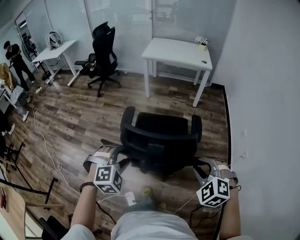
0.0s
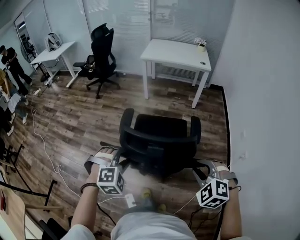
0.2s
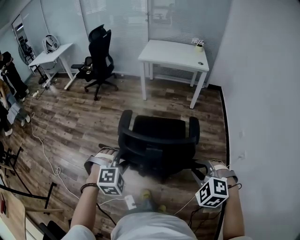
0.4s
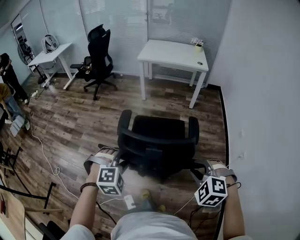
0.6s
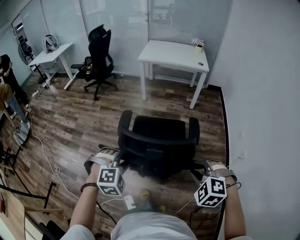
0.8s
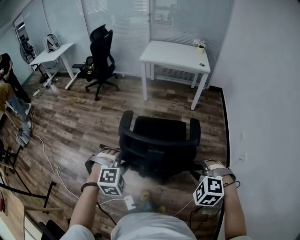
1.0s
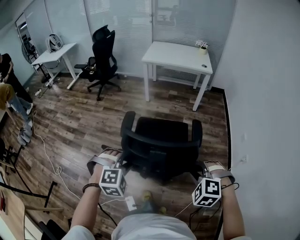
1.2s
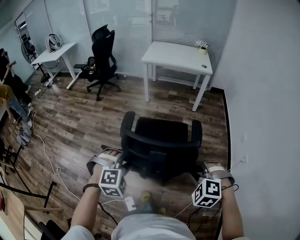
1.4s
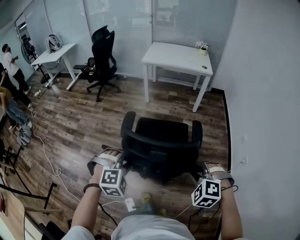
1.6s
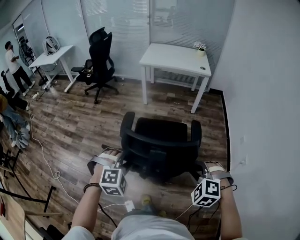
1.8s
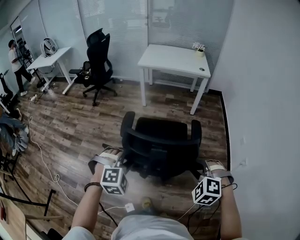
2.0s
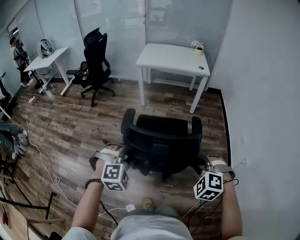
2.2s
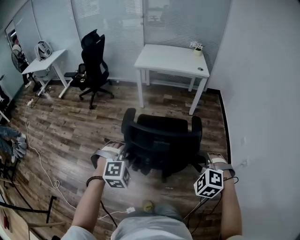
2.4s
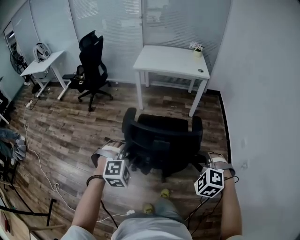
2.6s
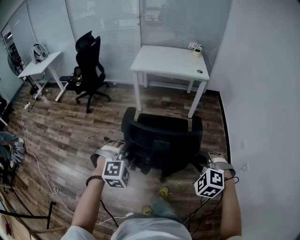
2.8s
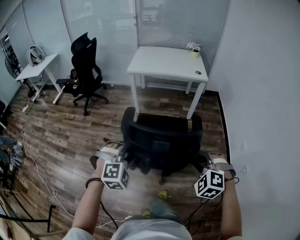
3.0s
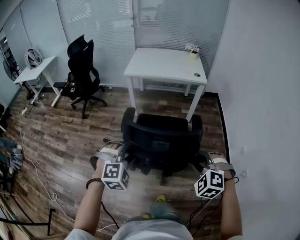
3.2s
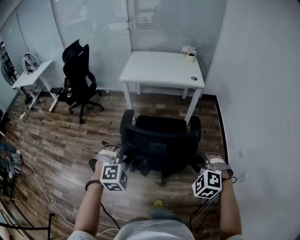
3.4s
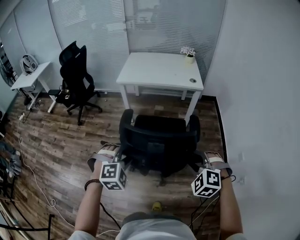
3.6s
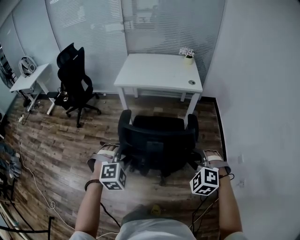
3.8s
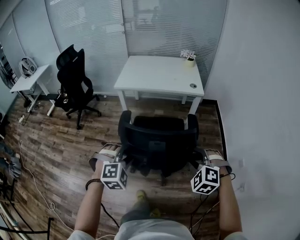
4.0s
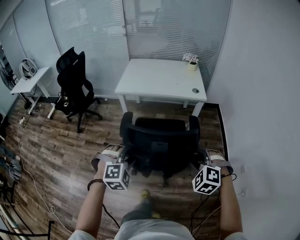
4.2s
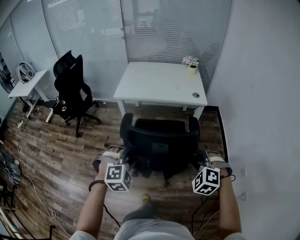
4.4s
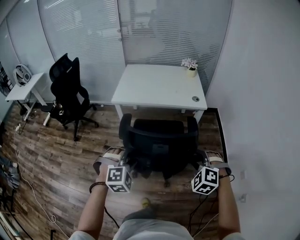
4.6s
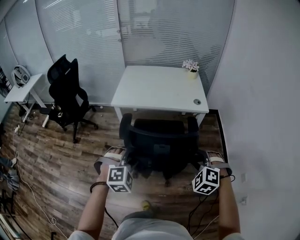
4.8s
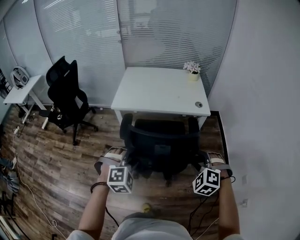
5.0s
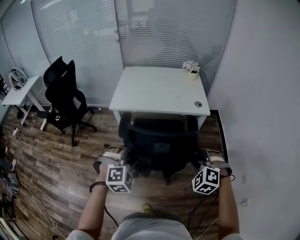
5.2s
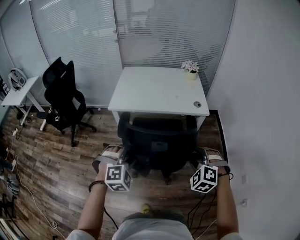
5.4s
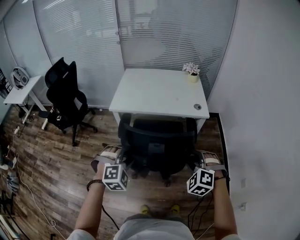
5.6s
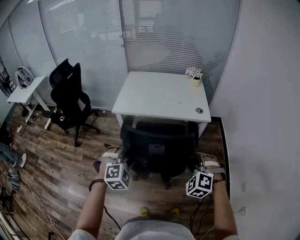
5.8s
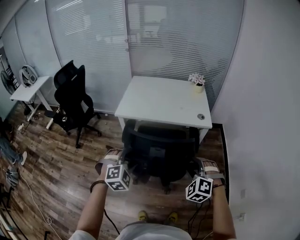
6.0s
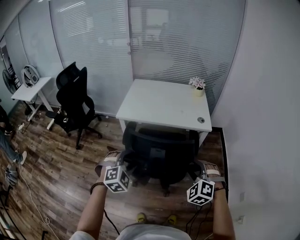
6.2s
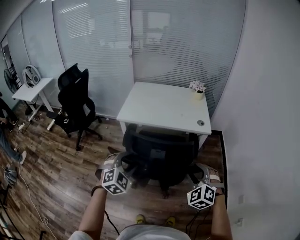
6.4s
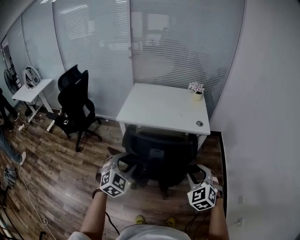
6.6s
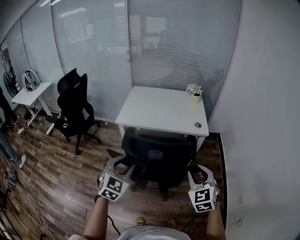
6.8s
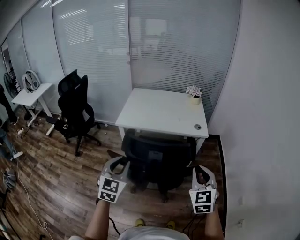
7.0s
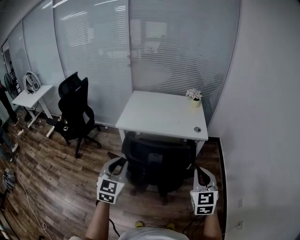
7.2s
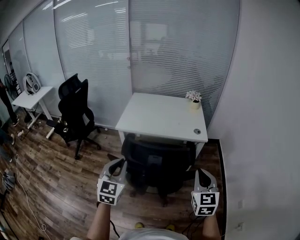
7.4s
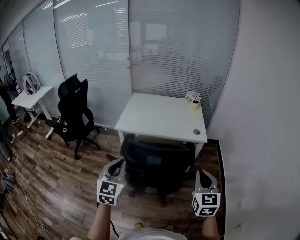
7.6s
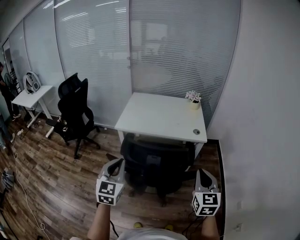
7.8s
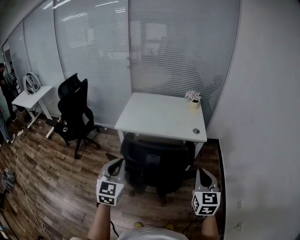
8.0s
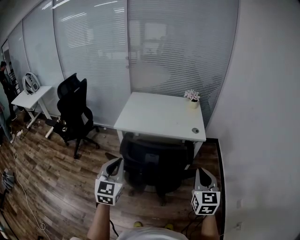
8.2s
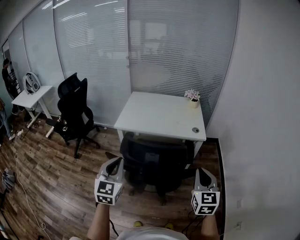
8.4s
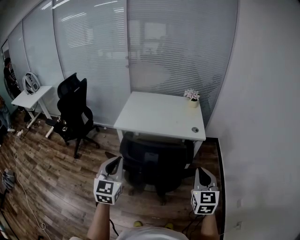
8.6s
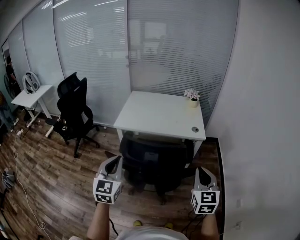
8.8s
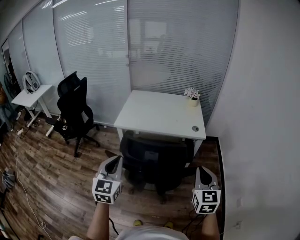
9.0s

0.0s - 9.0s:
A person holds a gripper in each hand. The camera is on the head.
0.0s - 1.6s: The right gripper changes place by about 5 cm.
1.6s - 3.0s: Both grippers move forward, about 30 cm.
3.0s - 4.4s: The grippers both shift forward by about 35 cm.
4.4s - 6.0s: The two grippers go roughly 15 cm forward.
6.0s - 7.6s: The right gripper shifts roughly 15 cm upward and to the right, twists roughly 60 degrees clockwise, seen from behind, and closes its fingers; the left gripper travels upward by some 10 cm, tips its fingers upward by about 30 degrees, and closes its fingers.
7.6s - 9.0s: There are only small adjustments of the grippers.

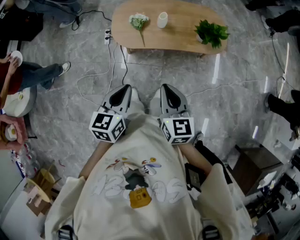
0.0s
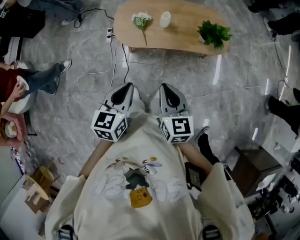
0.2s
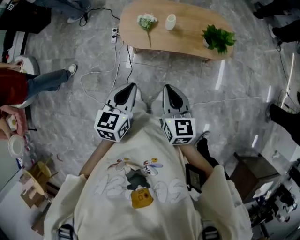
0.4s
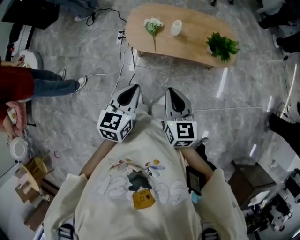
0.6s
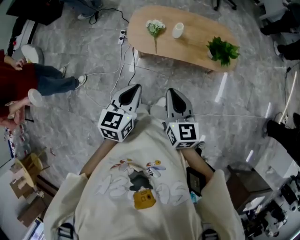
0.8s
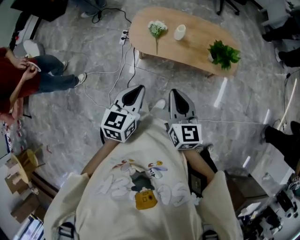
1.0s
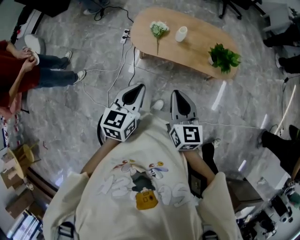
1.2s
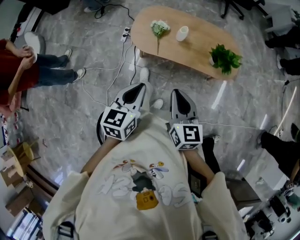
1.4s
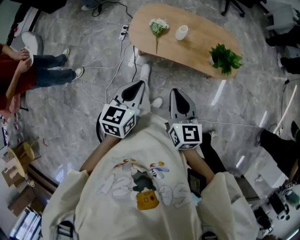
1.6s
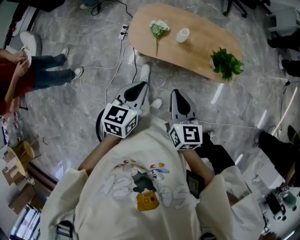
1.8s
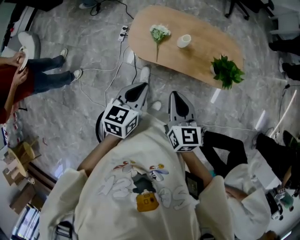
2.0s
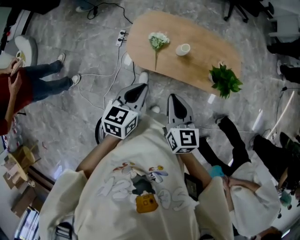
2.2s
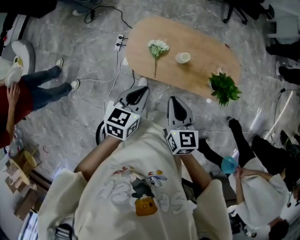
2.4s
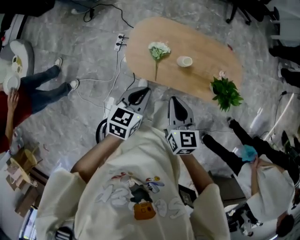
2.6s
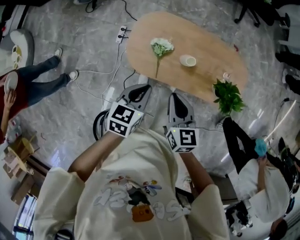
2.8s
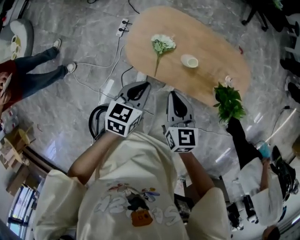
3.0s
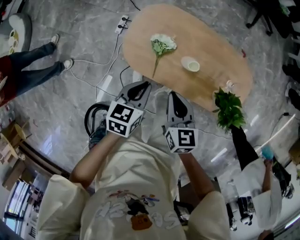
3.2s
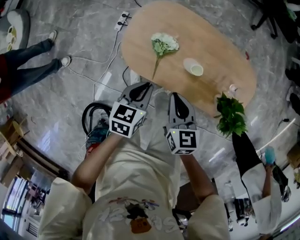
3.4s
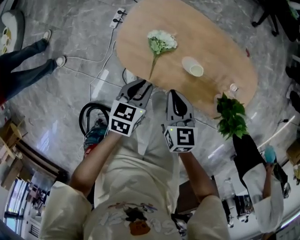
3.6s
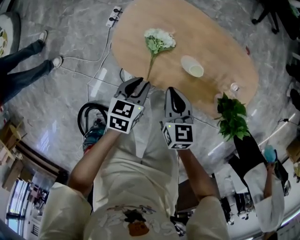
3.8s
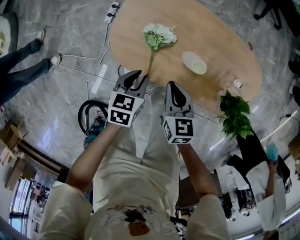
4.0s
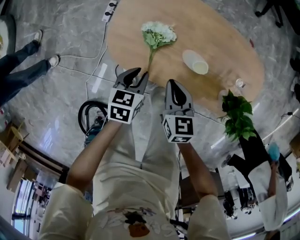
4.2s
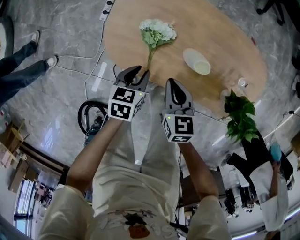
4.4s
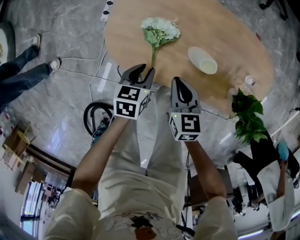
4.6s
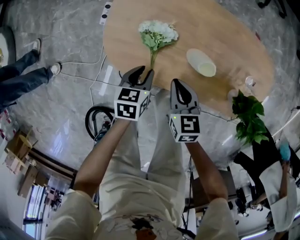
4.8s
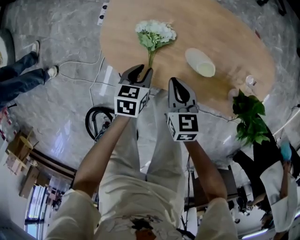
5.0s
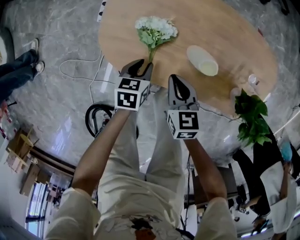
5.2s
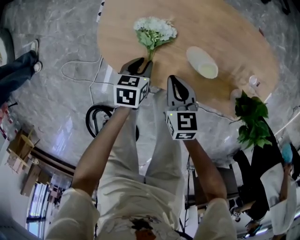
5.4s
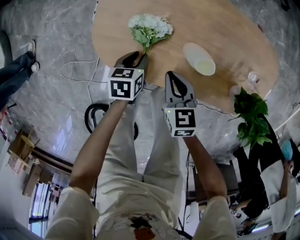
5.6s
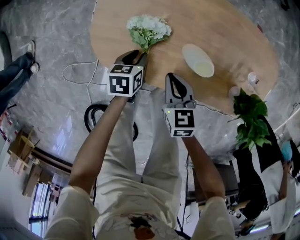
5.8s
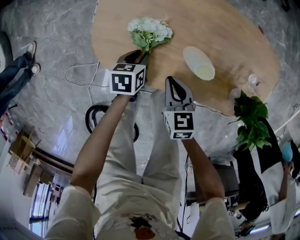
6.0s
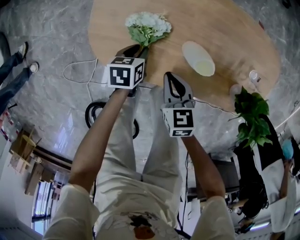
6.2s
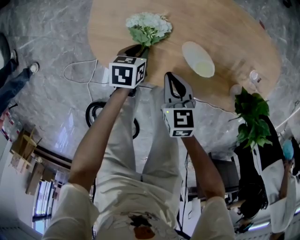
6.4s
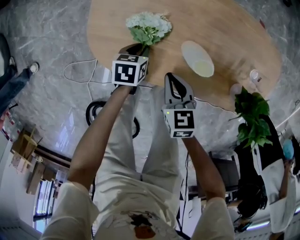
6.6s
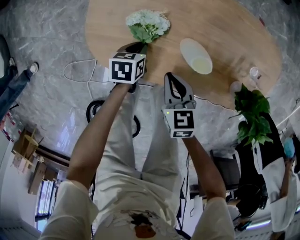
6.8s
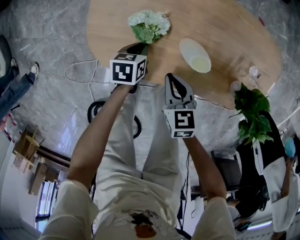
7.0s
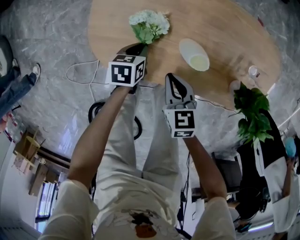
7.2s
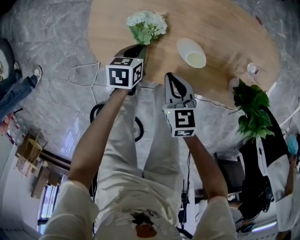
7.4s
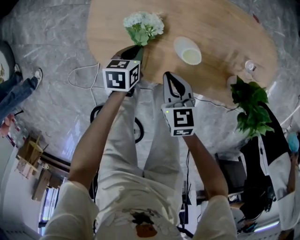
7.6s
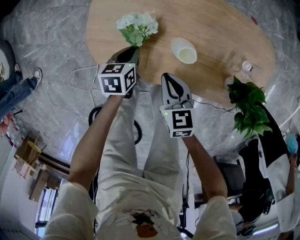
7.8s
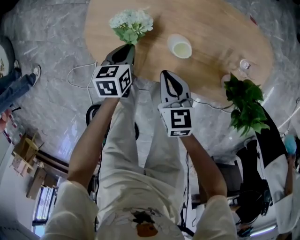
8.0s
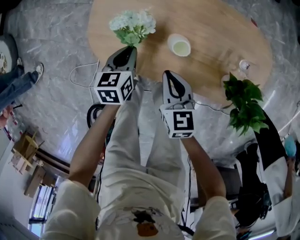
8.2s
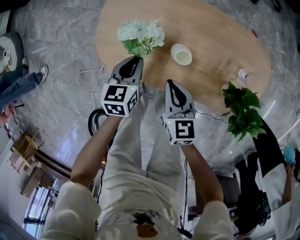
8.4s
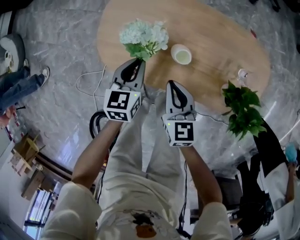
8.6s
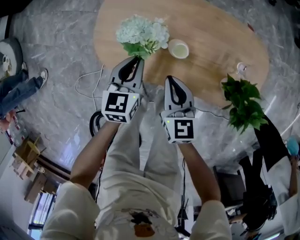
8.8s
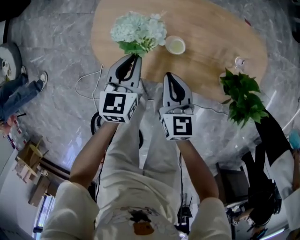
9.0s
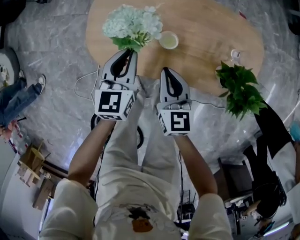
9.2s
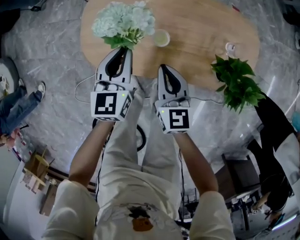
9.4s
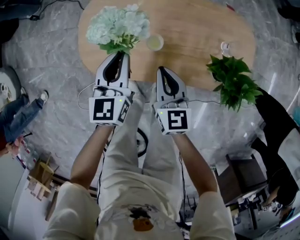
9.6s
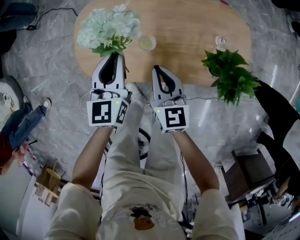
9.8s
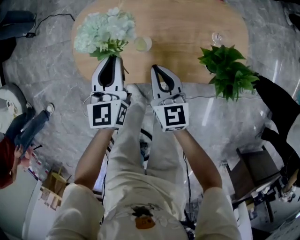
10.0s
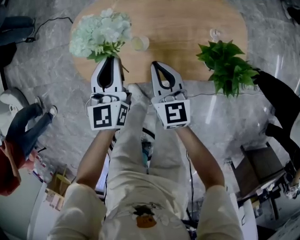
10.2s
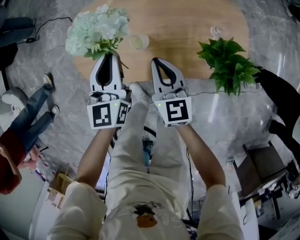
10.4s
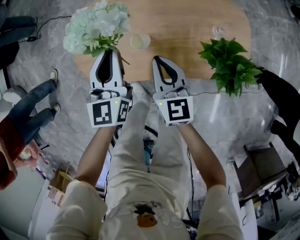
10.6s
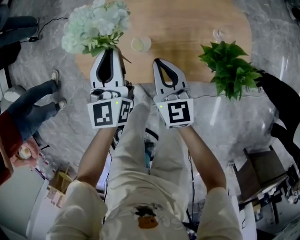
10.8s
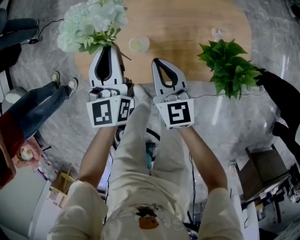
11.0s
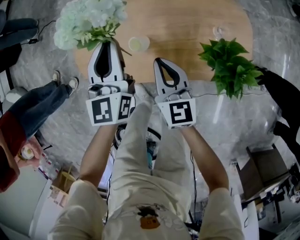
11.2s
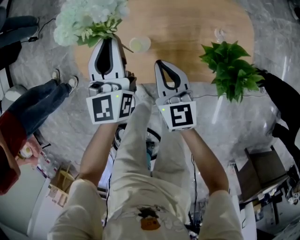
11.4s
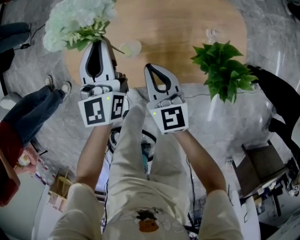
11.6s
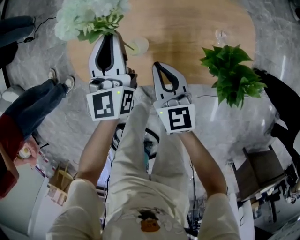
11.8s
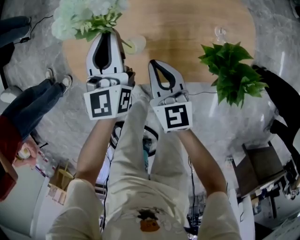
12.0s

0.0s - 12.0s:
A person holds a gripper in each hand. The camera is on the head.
0.0s - 1.6s: Both grippers travel together forward, roughly 5 cm.
1.6s - 3.0s: The right gripper travels forward by about 30 cm. Meanwhile the left gripper goes some 35 cm forward and downward.
3.0s - 4.4s: Both grippers travel together downward, some 25 cm. The left gripper opens up.
4.4s - 6.0s: The left gripper goes about 15 cm downward and forward, while the right gripper goes some 10 cm downward.
6.0s - 7.6s: The grippers move only a little.
7.6s - 9.0s: The right gripper moves upward, about 10 cm, while the left gripper is displaced upward by approximately 20 cm, and changes its angle by some 30 degrees.
9.0s - 10.4s: The right gripper heads to the right, covering some 10 cm. Meanwhile the left gripper moves upward and to the right, some 10 cm.
10.4s - 12.0s: The left gripper travels forward by some 5 cm.

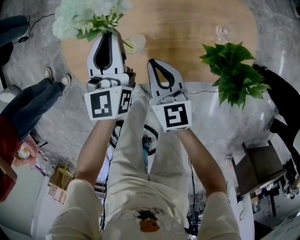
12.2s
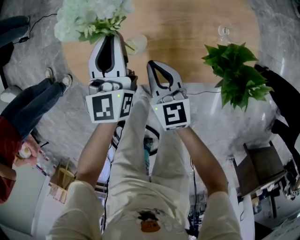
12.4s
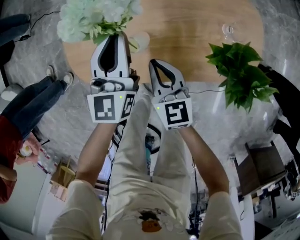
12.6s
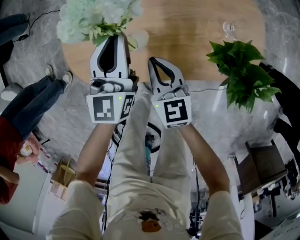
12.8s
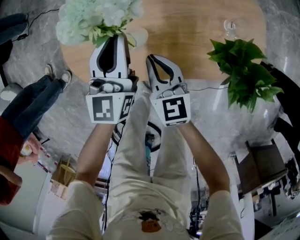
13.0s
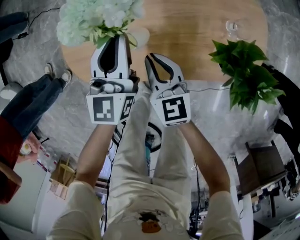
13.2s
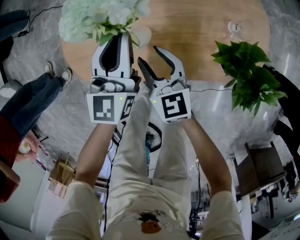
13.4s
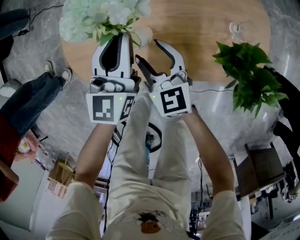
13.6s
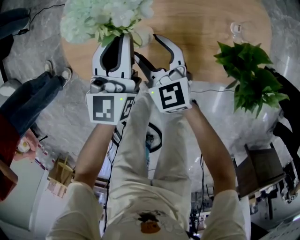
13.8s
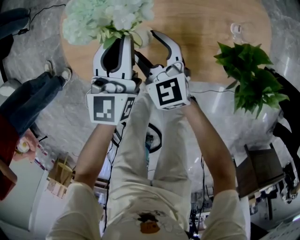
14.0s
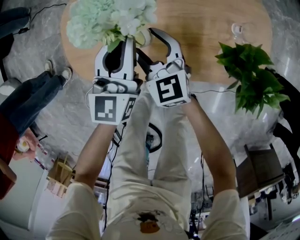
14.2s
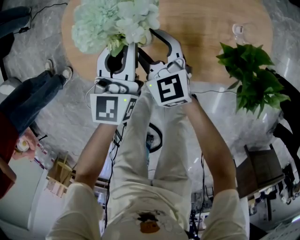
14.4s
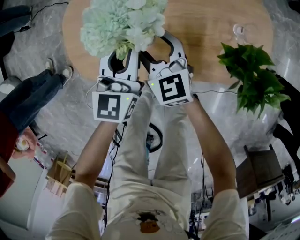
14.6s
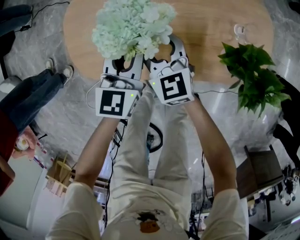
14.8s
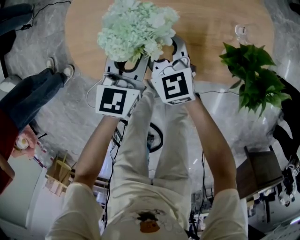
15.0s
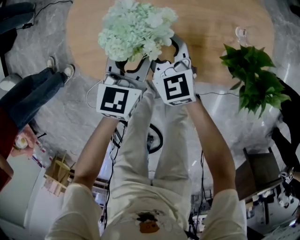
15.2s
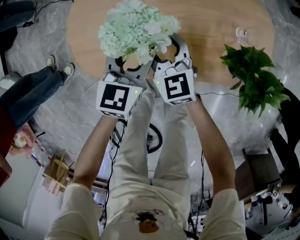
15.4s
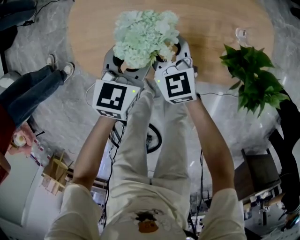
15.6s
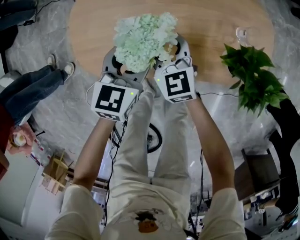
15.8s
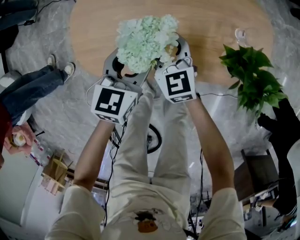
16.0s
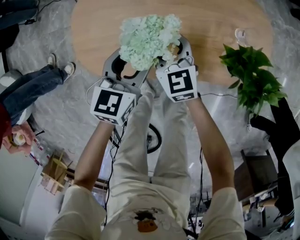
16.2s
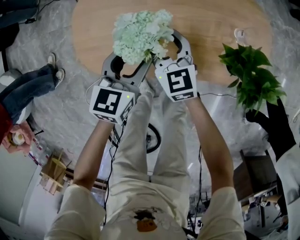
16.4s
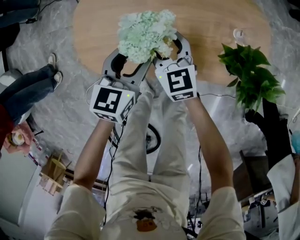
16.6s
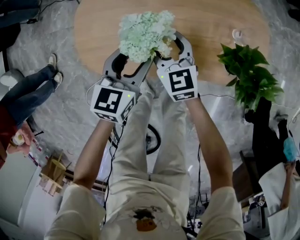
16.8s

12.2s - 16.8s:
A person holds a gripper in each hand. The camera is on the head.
12.2s - 13.8s: The right gripper heads downward, covering roughly 5 cm, turns by some 20 degrees, and opens up; the left gripper shifts by roughly 5 cm.
13.8s - 15.2s: The left gripper shifts some 5 cm downward, turns by about 20 degrees, and opens up.
15.2s - 16.8s: The grippers stay close to where they were, moving slightly.
